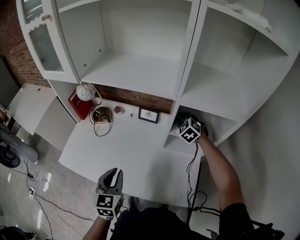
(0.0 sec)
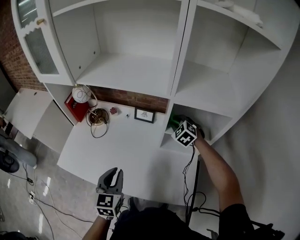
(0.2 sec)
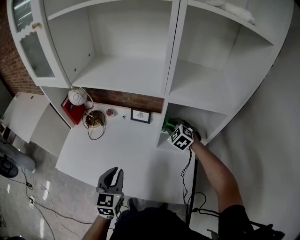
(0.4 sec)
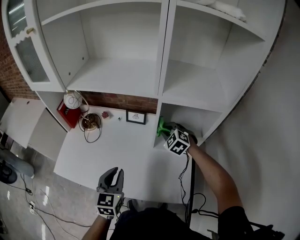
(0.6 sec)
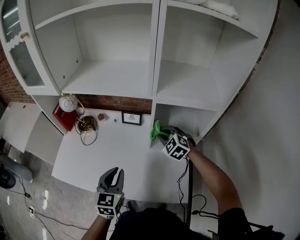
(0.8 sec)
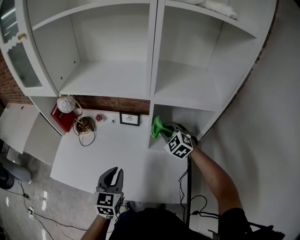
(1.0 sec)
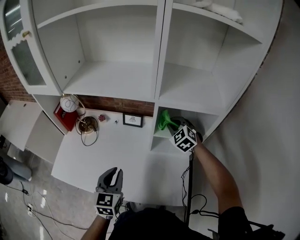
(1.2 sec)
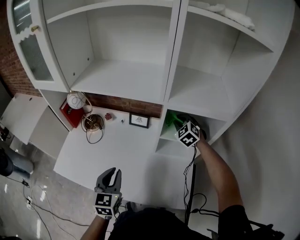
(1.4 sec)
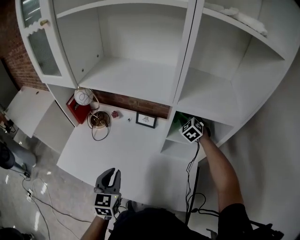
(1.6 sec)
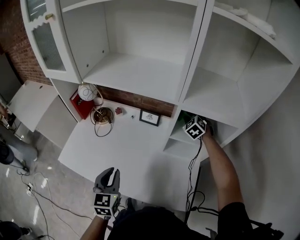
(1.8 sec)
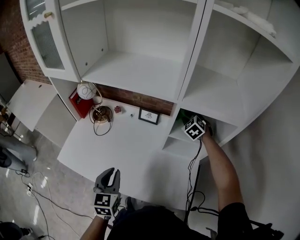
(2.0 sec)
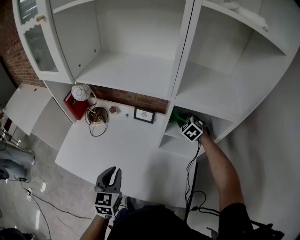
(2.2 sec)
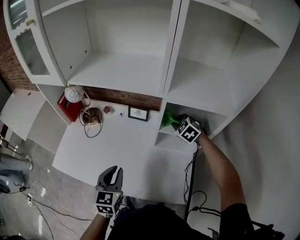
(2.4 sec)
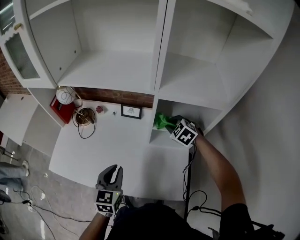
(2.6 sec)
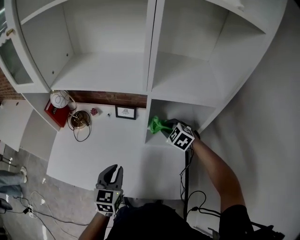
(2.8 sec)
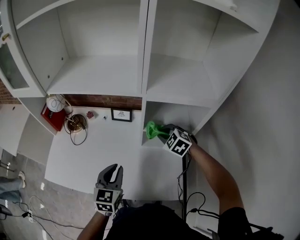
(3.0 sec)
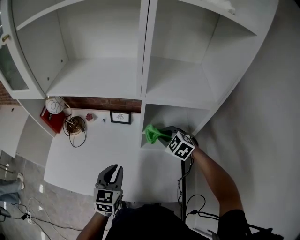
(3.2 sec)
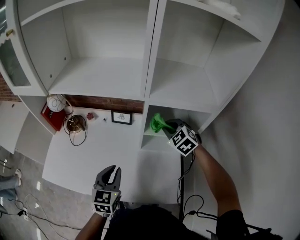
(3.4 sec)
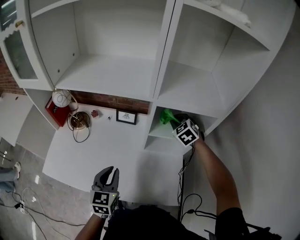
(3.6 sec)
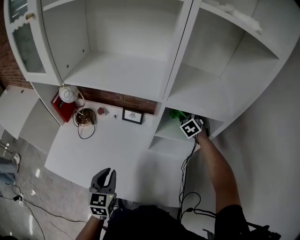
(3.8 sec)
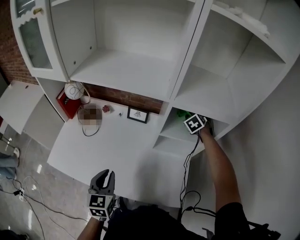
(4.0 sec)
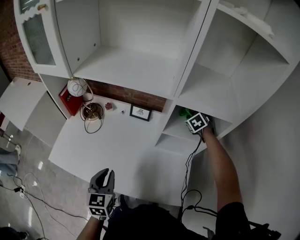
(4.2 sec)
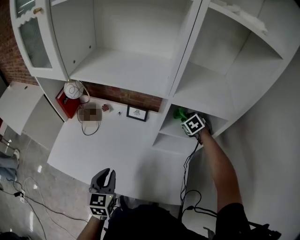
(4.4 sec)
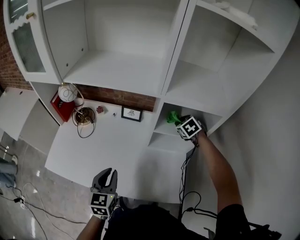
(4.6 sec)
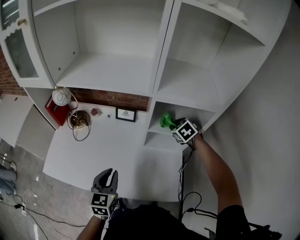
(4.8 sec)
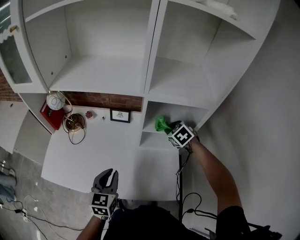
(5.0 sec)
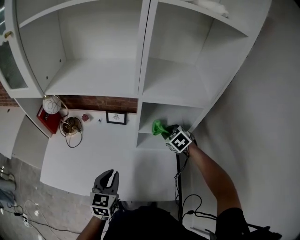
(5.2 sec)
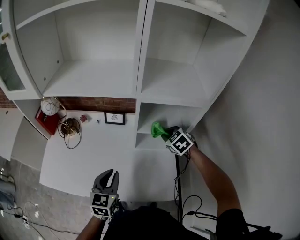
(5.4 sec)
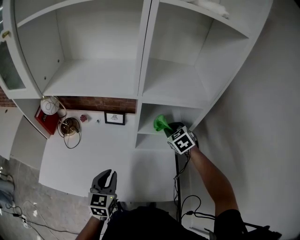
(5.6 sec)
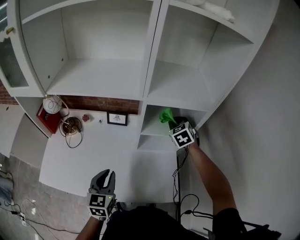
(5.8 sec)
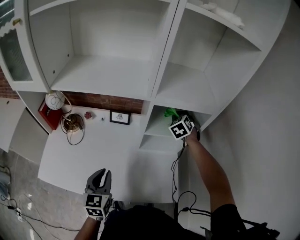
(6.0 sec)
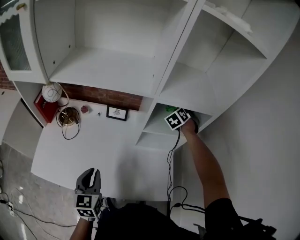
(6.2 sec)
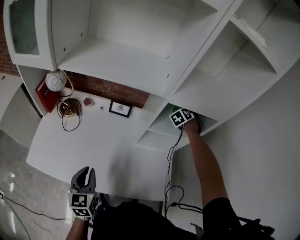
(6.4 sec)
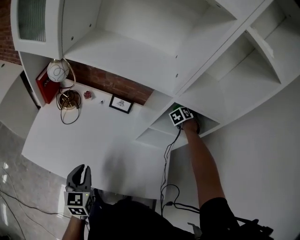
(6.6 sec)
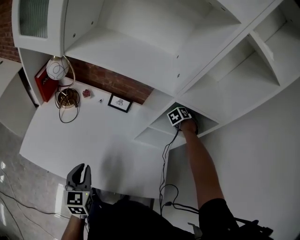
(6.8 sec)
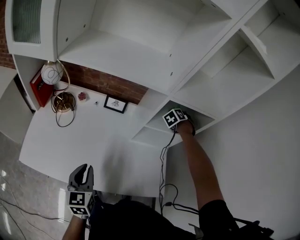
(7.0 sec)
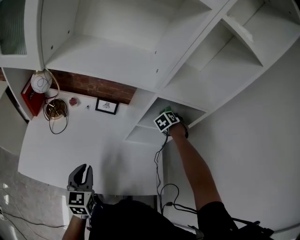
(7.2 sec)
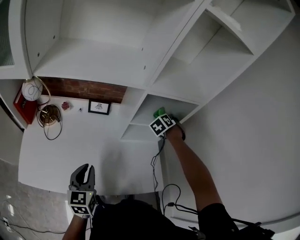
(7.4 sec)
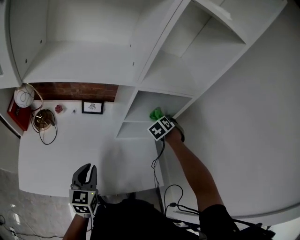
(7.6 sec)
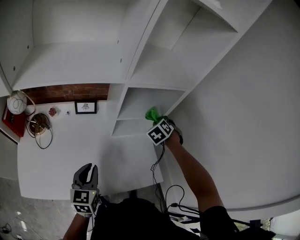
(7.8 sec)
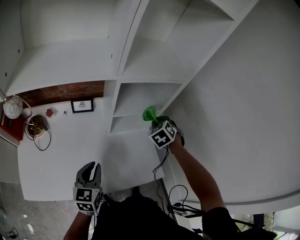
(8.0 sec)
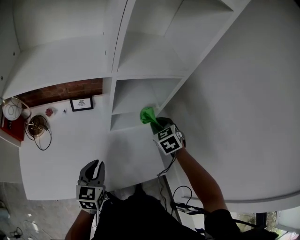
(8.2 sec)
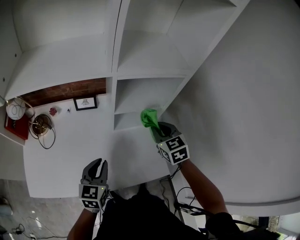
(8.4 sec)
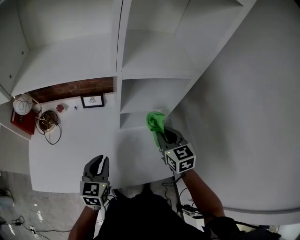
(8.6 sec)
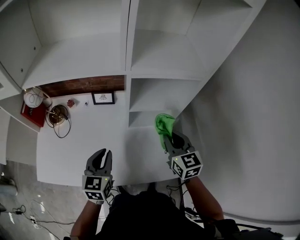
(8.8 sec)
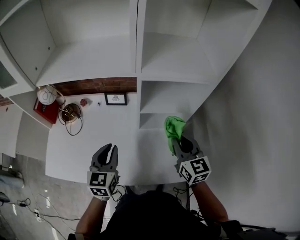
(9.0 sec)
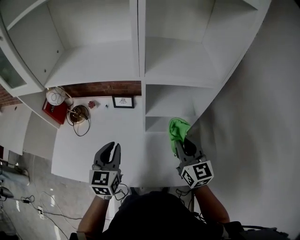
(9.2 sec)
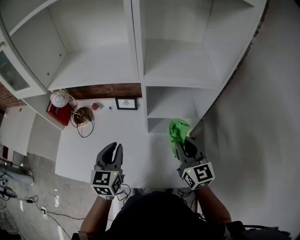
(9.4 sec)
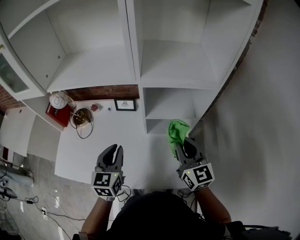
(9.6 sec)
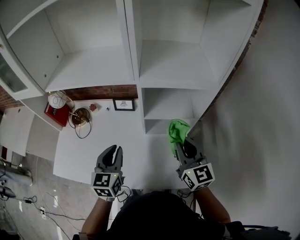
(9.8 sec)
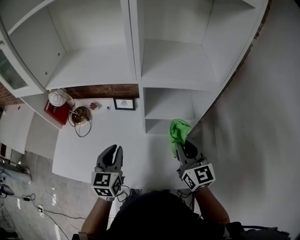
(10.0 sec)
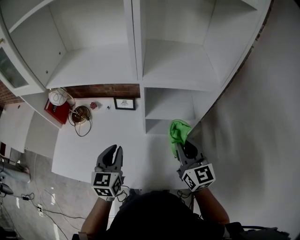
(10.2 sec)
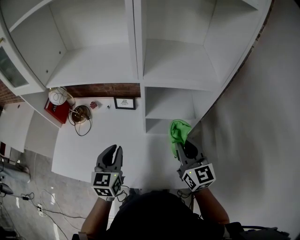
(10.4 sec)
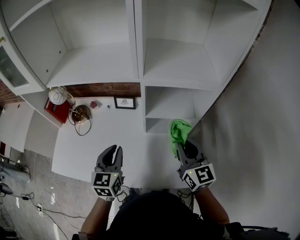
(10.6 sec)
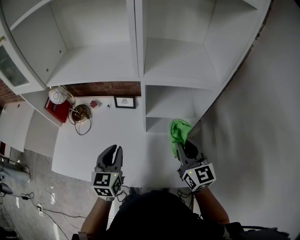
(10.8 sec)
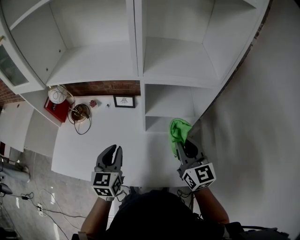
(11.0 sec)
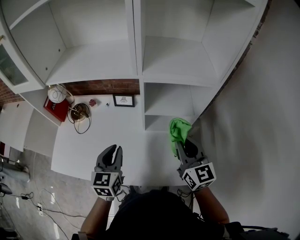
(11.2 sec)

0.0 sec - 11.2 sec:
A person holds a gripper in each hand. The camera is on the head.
0.0 sec - 1.6 sec: The right gripper reaches roughly 10 cm backward, then returns.
1.6 sec - 3.2 sec: The right gripper moves backward, about 15 cm. The left gripper travels to the right by about 10 cm.
3.2 sec - 4.8 sec: The right gripper goes approximately 5 cm forward, and swivels approximately 20 degrees.
4.8 sec - 6.4 sec: The left gripper goes about 10 cm to the left. Meanwhile the right gripper moves forward and to the right, approximately 15 cm, and changes its angle by roughly 40 degrees.
6.4 sec - 8.0 sec: The left gripper travels forward and to the right by some 10 cm, and turns by some 30 degrees, while the right gripper moves backward and to the right, approximately 20 cm.
8.0 sec - 9.6 sec: Both grippers travel together upward, approximately 10 cm. The right gripper points its fingers approximately 50 degrees further upward.
9.6 sec - 11.2 sec: There are only small adjustments of the grippers.

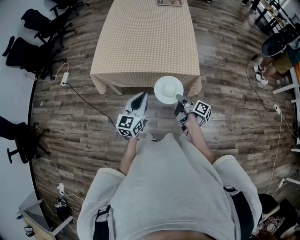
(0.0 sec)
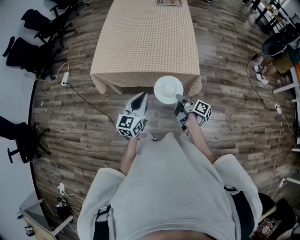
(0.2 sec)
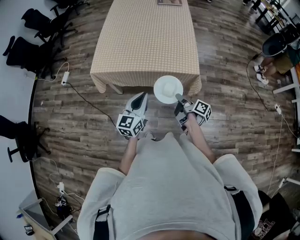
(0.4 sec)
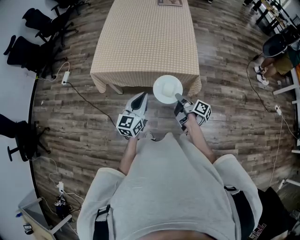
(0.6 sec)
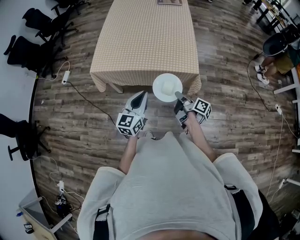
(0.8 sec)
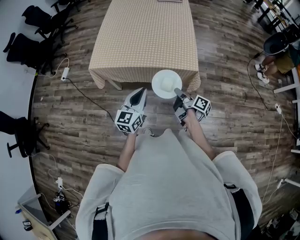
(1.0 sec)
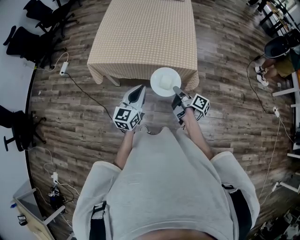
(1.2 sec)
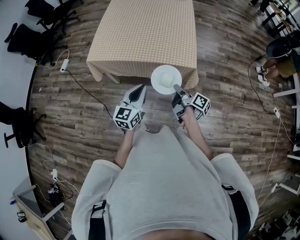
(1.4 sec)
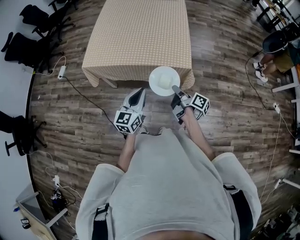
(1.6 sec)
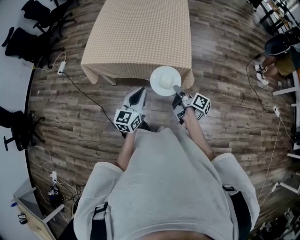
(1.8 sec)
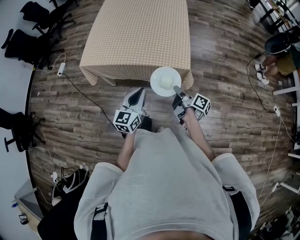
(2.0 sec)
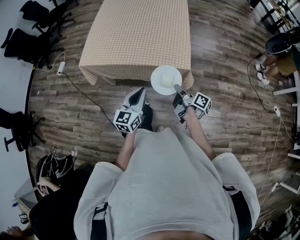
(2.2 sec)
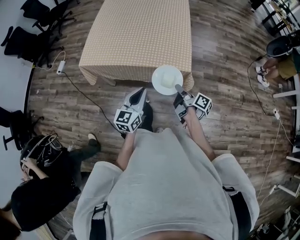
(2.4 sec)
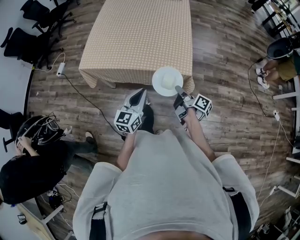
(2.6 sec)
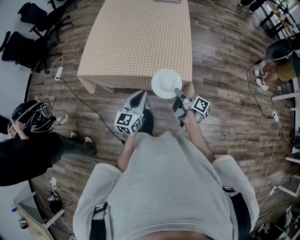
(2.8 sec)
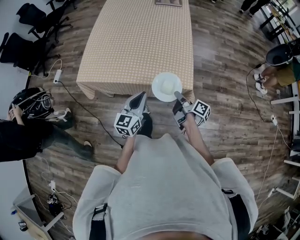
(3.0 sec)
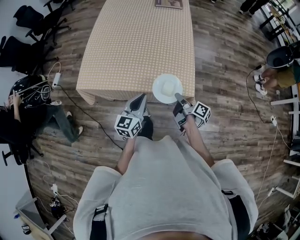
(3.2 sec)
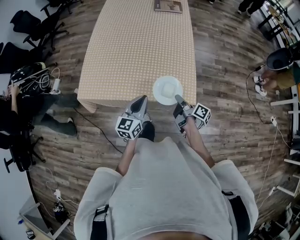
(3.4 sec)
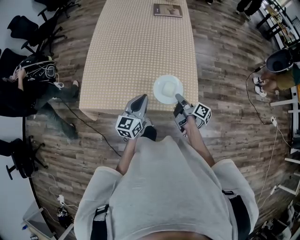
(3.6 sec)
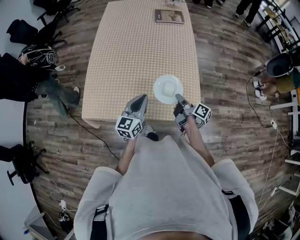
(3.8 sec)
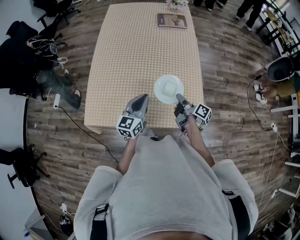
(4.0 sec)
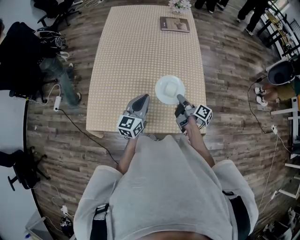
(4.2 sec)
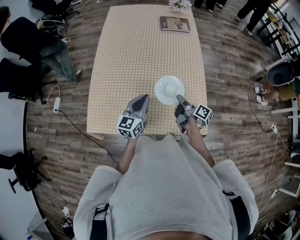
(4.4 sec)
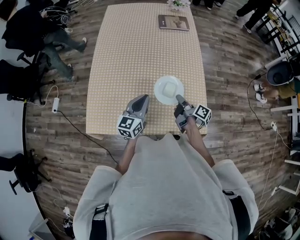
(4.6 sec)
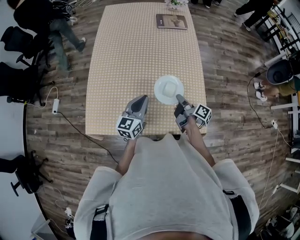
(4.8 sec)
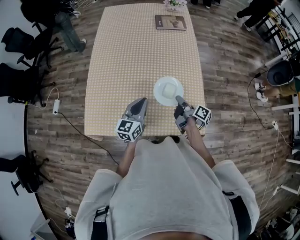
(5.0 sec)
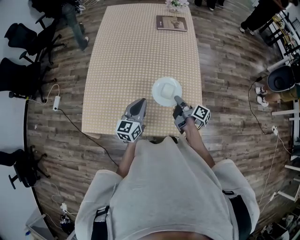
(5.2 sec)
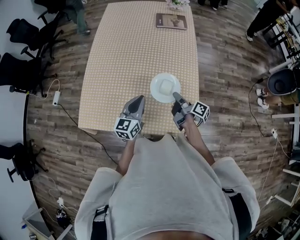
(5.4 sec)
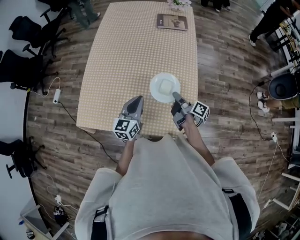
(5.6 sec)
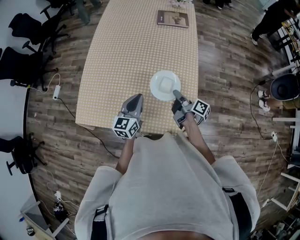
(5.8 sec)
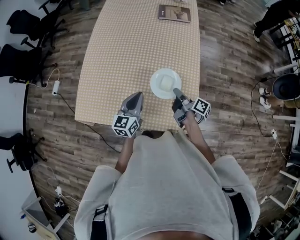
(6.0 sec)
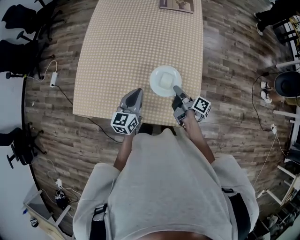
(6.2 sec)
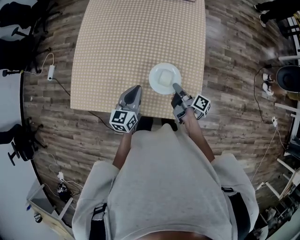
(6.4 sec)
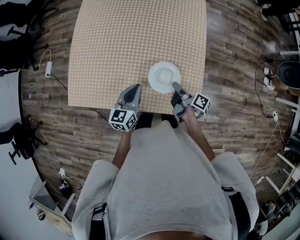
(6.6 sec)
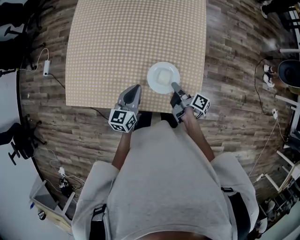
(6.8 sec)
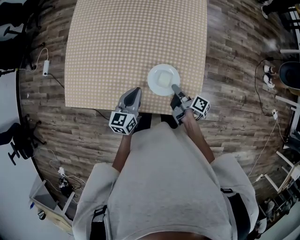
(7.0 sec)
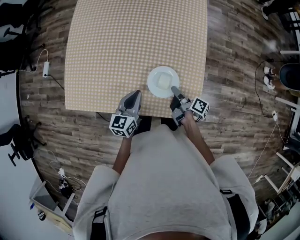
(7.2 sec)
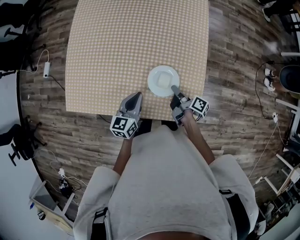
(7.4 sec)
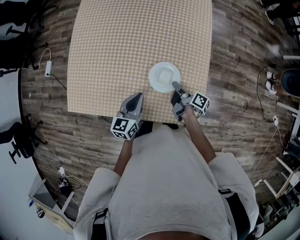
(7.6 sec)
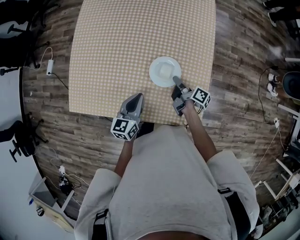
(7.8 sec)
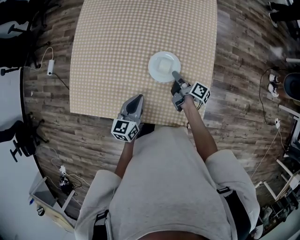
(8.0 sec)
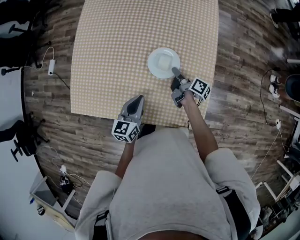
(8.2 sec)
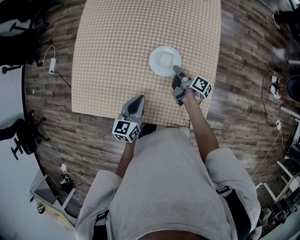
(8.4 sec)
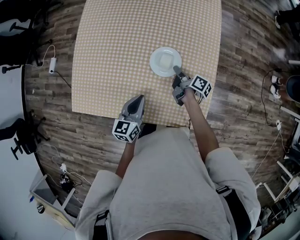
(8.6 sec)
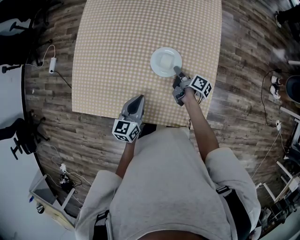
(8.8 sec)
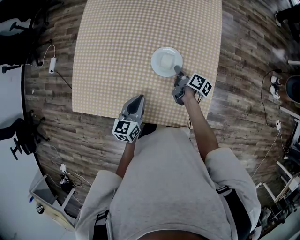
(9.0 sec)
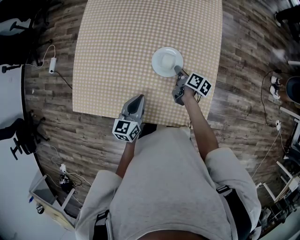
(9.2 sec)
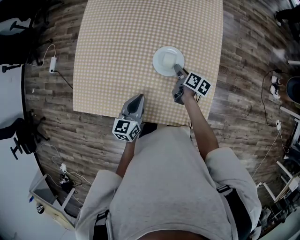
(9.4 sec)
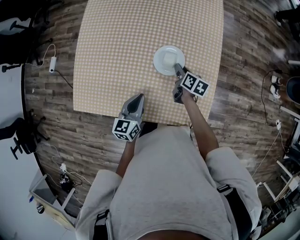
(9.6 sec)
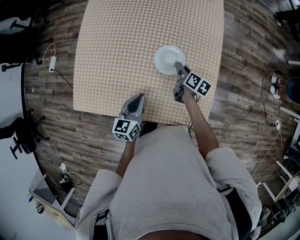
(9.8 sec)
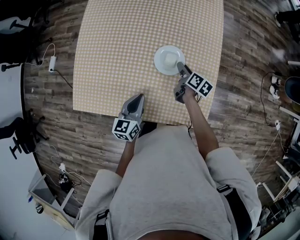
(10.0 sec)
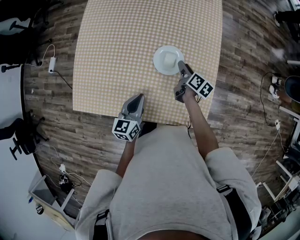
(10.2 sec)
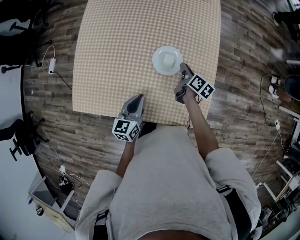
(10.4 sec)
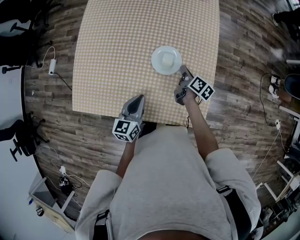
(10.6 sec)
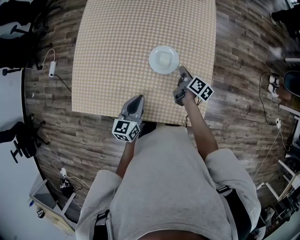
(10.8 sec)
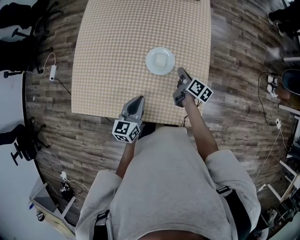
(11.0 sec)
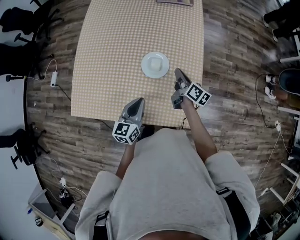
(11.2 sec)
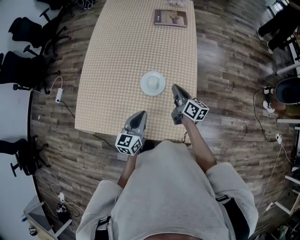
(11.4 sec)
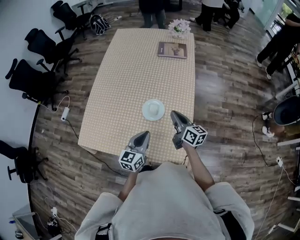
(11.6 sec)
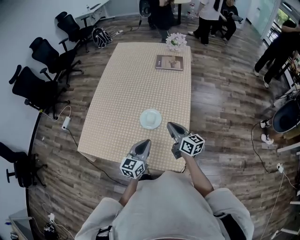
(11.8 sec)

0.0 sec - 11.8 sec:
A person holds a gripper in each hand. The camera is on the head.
0.0 sec - 1.4 sec: The grippers stay close to where they were, moving slightly.
1.4 sec - 3.0 sec: The grippers both shift forward by about 10 cm.
3.0 sec - 4.4 sec: Both grippers travel together forward, about 30 cm.
4.4 sec - 6.0 sec: Both grippers move to the right, approximately 5 cm.
6.0 sec - 7.4 sec: Both grippers move downward, about 10 cm.
7.4 sec - 8.8 sec: The right gripper is displaced forward by roughly 15 cm.
8.8 sec - 10.4 sec: The right gripper swivels approximately 20 degrees, and opens, then closes once more.
10.4 sec - 11.8 sec: The left gripper shifts about 15 cm to the right and upward; the right gripper shifts some 20 cm upward and backward, and changes its angle by about 50 degrees.

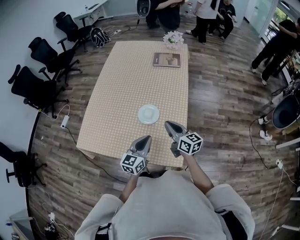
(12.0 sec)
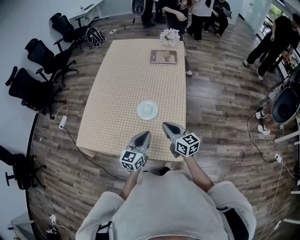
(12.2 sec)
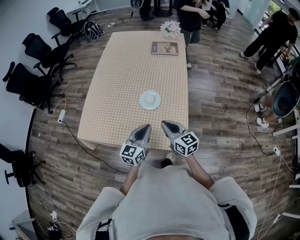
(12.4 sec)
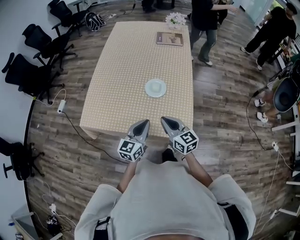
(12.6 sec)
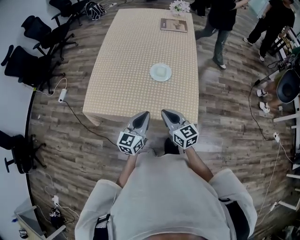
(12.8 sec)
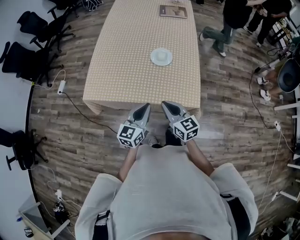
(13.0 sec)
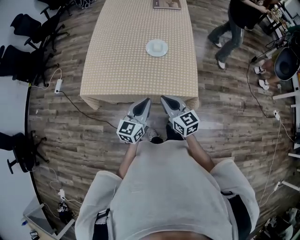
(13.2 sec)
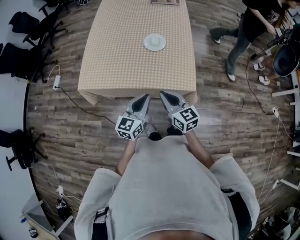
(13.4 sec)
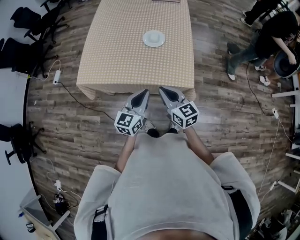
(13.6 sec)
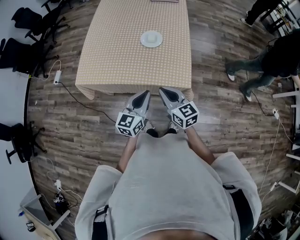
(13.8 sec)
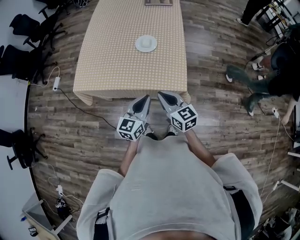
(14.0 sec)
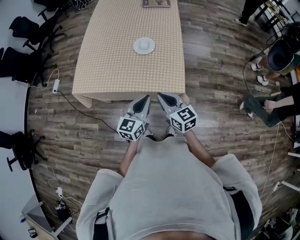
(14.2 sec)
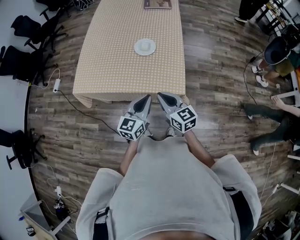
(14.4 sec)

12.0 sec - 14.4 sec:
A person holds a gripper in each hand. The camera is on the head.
12.0 sec - 13.2 sec: Both grippers travel together backward and to the left, roughly 25 cm.
13.2 sec - 14.4 sec: Both grippers travel together to the right, some 10 cm.
